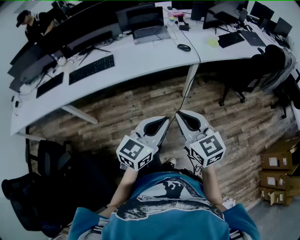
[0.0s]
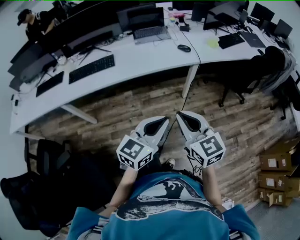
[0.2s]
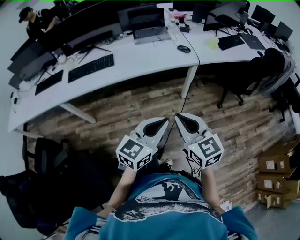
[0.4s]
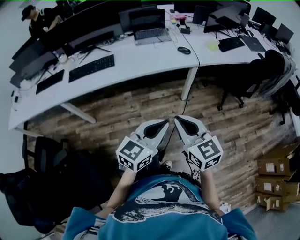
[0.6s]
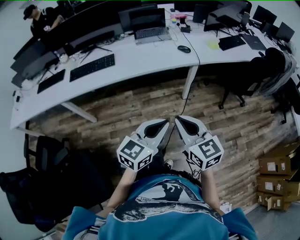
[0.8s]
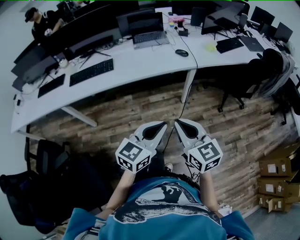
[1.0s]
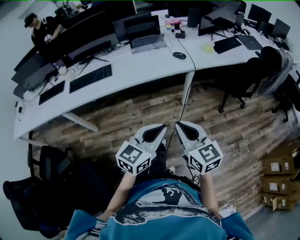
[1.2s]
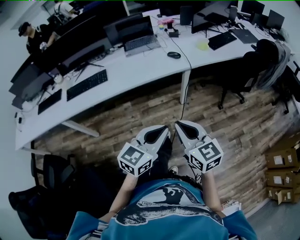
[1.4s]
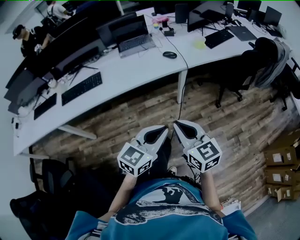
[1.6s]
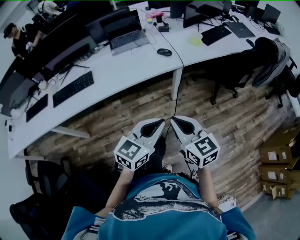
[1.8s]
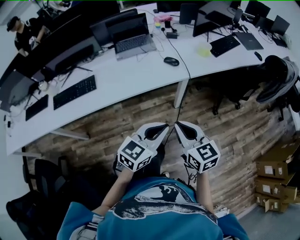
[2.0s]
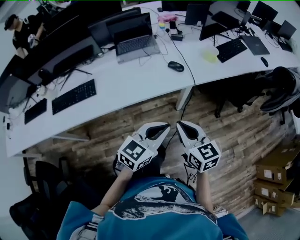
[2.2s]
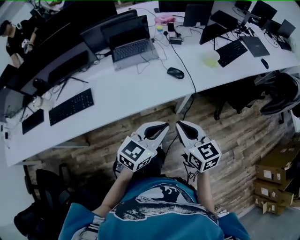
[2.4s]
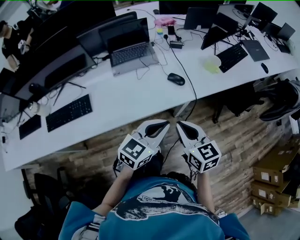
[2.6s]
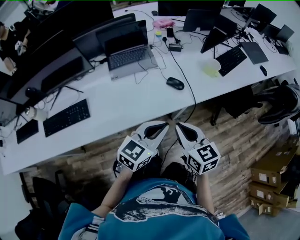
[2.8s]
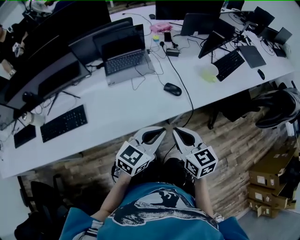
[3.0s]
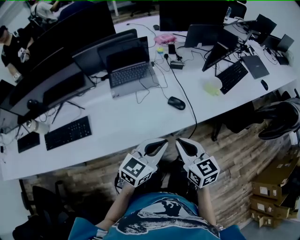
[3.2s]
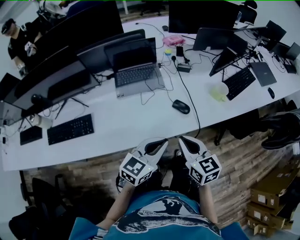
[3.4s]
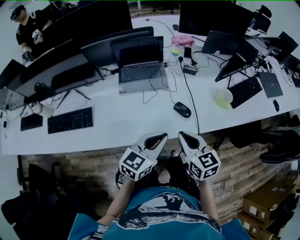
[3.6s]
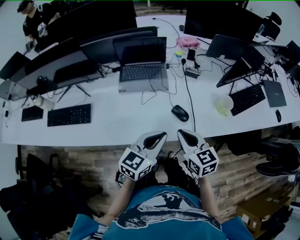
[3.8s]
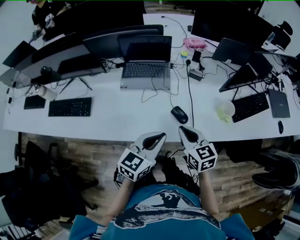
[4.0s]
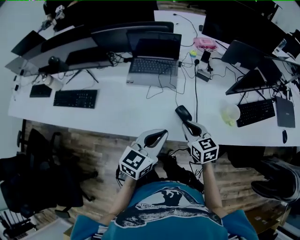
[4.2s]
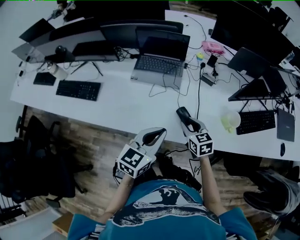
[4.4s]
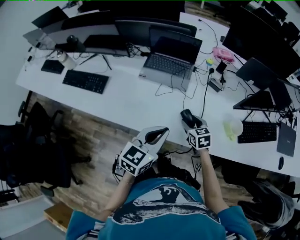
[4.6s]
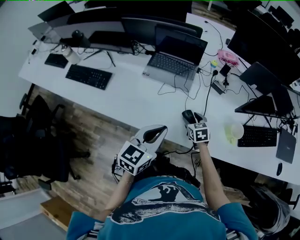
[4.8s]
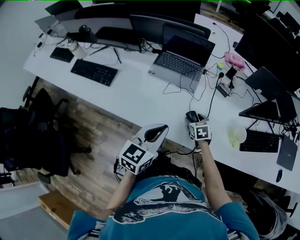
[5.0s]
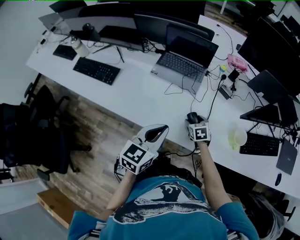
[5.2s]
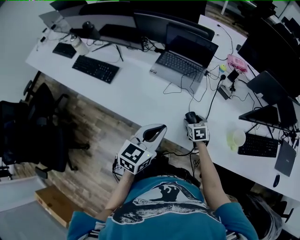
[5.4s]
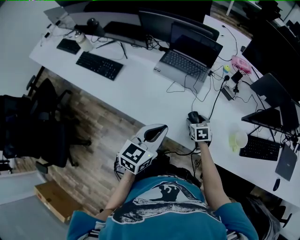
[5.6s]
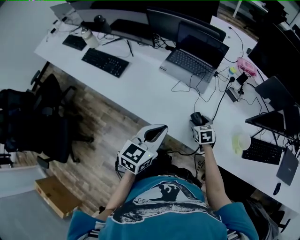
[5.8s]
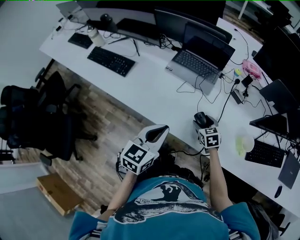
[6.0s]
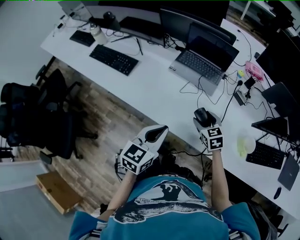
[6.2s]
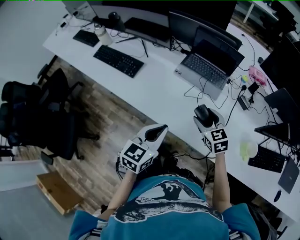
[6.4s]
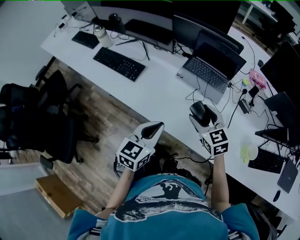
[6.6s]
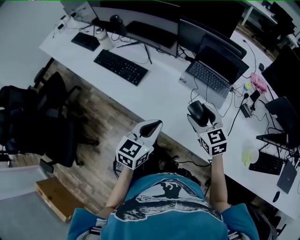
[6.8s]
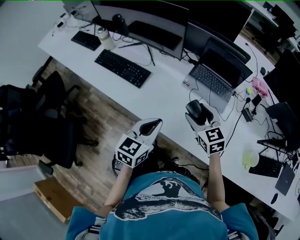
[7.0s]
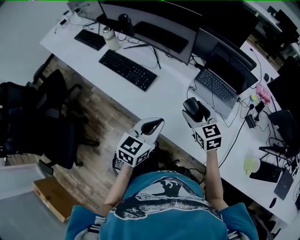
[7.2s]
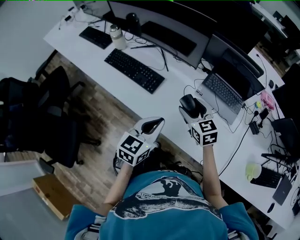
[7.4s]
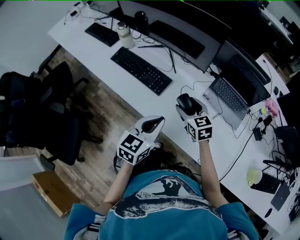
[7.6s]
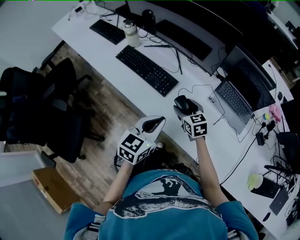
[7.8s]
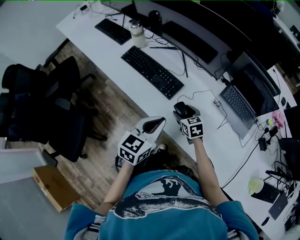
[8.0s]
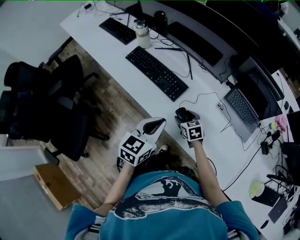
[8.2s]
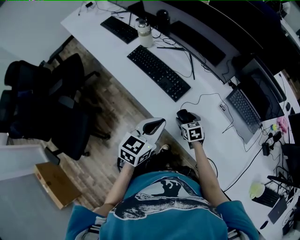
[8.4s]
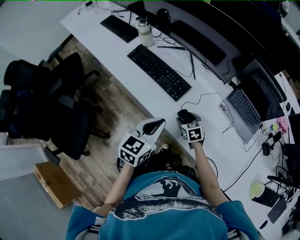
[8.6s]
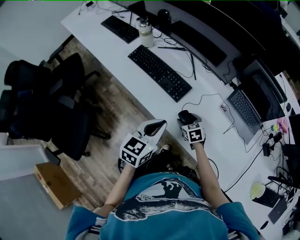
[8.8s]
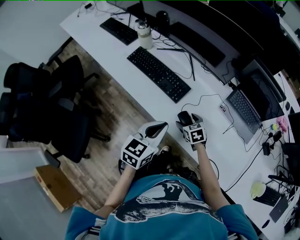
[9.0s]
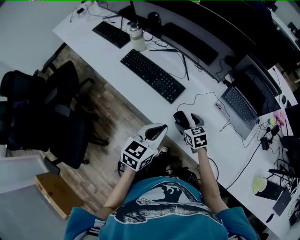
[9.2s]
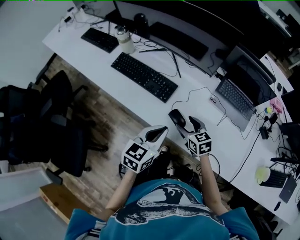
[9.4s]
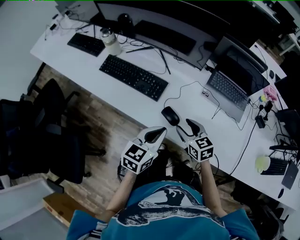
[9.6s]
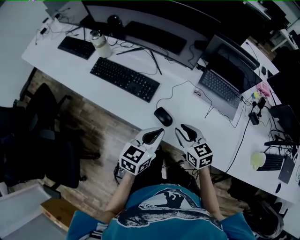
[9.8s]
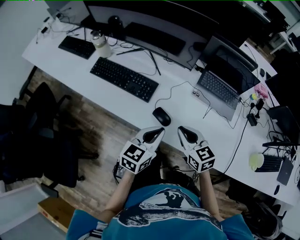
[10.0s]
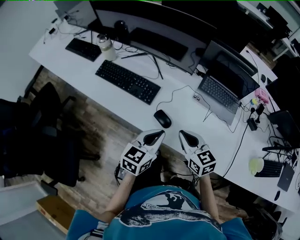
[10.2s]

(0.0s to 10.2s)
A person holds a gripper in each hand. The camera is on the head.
0.0s - 1.4s: The right gripper ends up roughly 5 cm from where it was.
1.4s - 3.0s: Both grippers travel together forward, about 35 cm.
3.0s - 4.4s: The right gripper changes place by some 25 cm, and swivels roughly 30 degrees, while the left gripper ends up roughly 10 cm from where it was, and turns by some 40 degrees.
4.4s - 5.8s: The right gripper moves downward and forward, about 10 cm, changes its angle by roughly 20 degrees, and opens.
5.8s - 7.2s: The left gripper is displaced to the left and forward by approximately 20 cm. Meanwhile the right gripper shifts some 35 cm to the left and upward, and swivels roughly 30 degrees.
7.2s - 8.8s: The left gripper shifts about 15 cm to the left and forward. Meanwhile the right gripper heads downward and to the left, covering some 25 cm, and changes its angle by about 20 degrees.
8.8s - 10.2s: The right gripper heads upward, backward and to the right, covering about 25 cm, rotates some 30 degrees, and closes up. Meanwhile the left gripper shifts approximately 10 cm to the right.

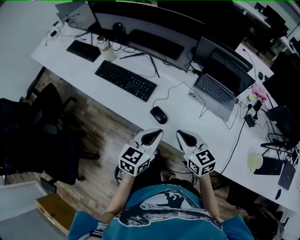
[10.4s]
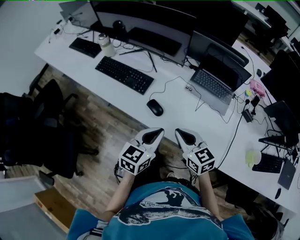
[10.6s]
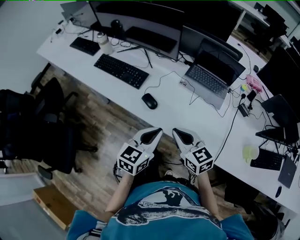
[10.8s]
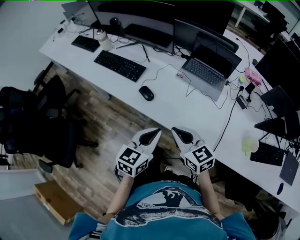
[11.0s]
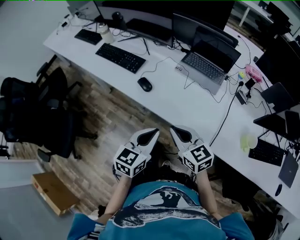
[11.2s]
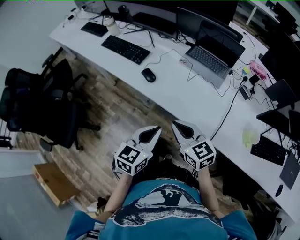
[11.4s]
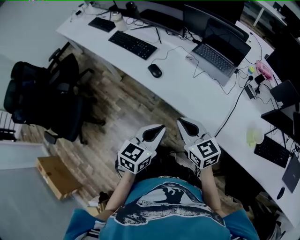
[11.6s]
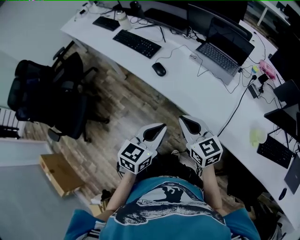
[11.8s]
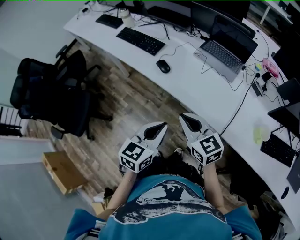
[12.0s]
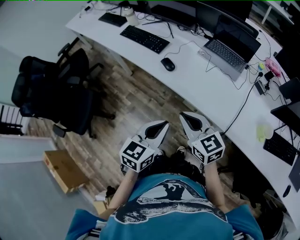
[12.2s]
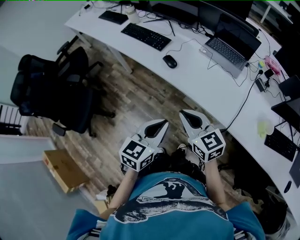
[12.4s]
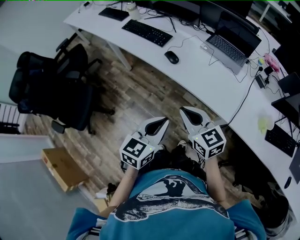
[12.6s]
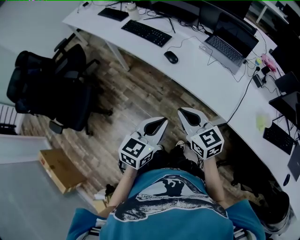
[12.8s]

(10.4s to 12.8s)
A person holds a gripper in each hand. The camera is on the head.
10.4s - 11.6s: The two grippers go roughly 25 cm backward and to the right.
11.6s - 12.8s: The two grippers go some 10 cm to the left and backward.

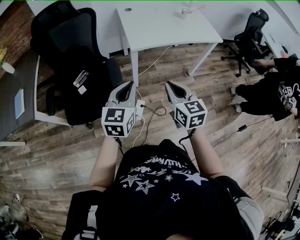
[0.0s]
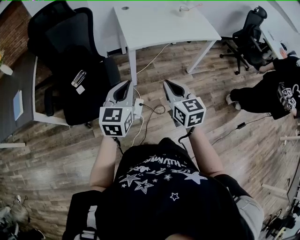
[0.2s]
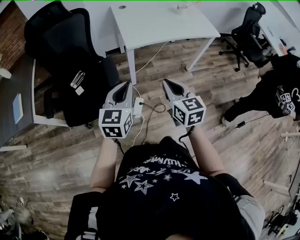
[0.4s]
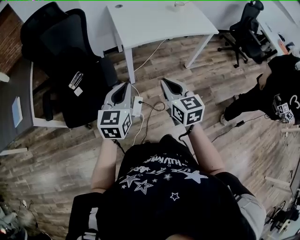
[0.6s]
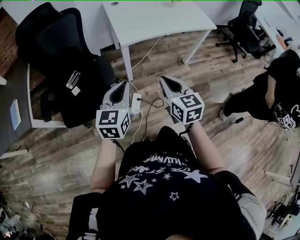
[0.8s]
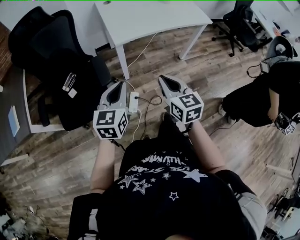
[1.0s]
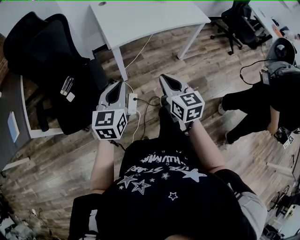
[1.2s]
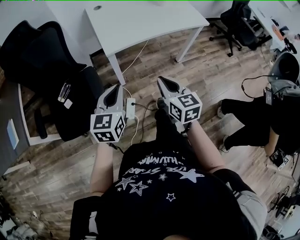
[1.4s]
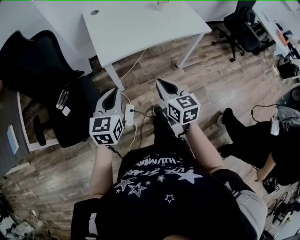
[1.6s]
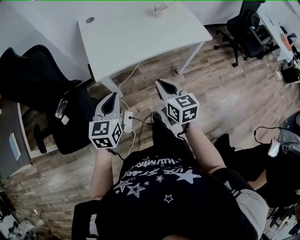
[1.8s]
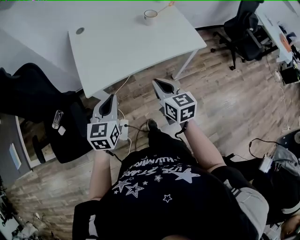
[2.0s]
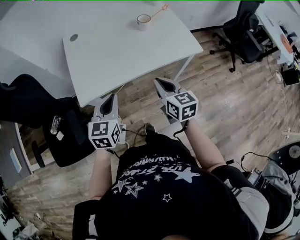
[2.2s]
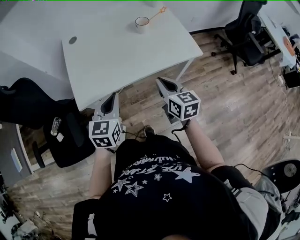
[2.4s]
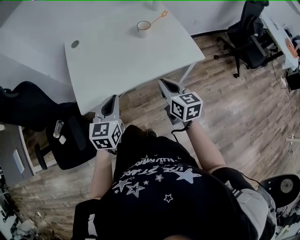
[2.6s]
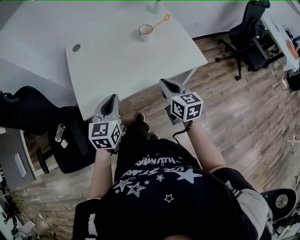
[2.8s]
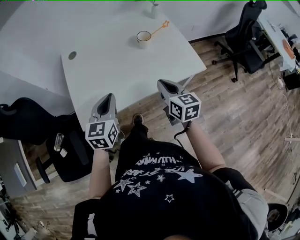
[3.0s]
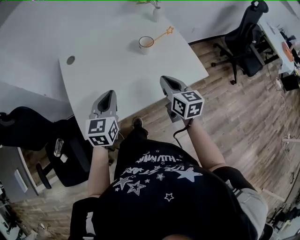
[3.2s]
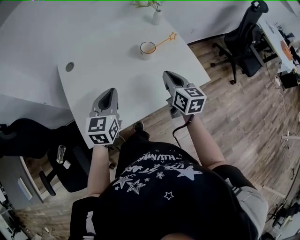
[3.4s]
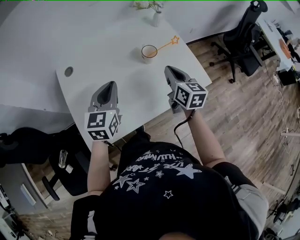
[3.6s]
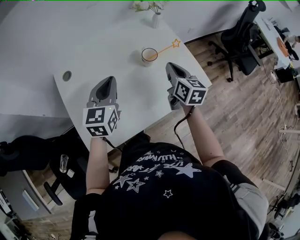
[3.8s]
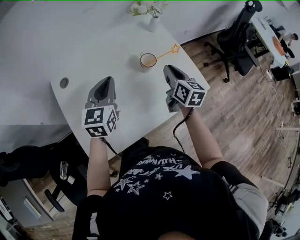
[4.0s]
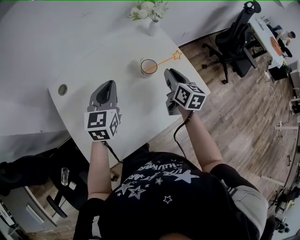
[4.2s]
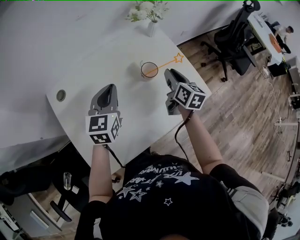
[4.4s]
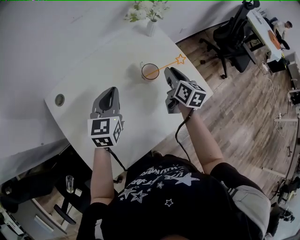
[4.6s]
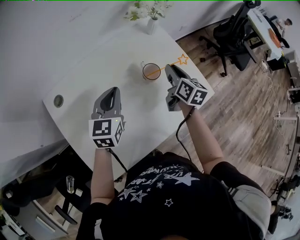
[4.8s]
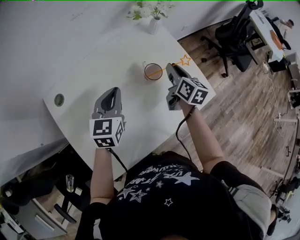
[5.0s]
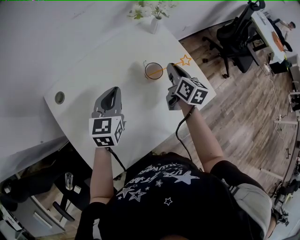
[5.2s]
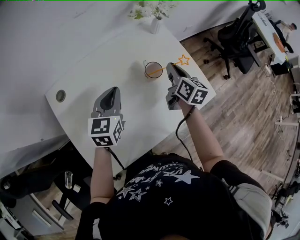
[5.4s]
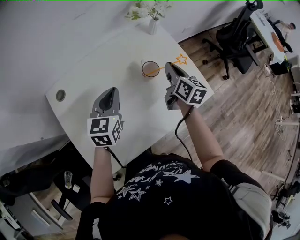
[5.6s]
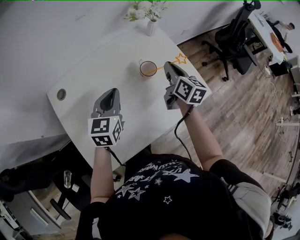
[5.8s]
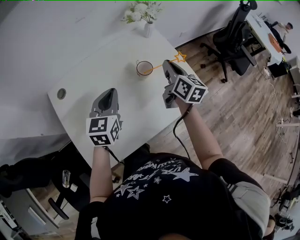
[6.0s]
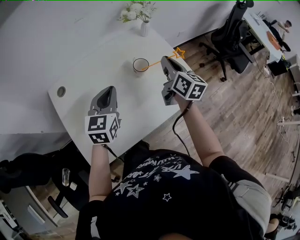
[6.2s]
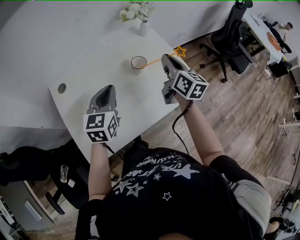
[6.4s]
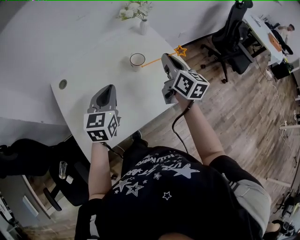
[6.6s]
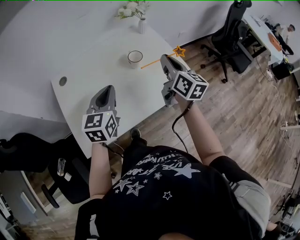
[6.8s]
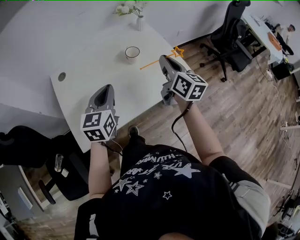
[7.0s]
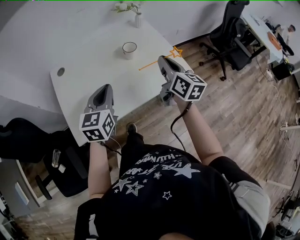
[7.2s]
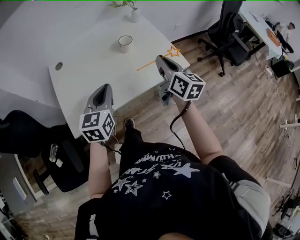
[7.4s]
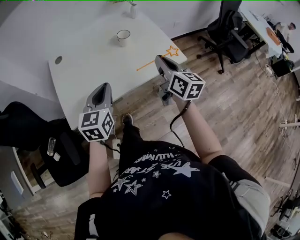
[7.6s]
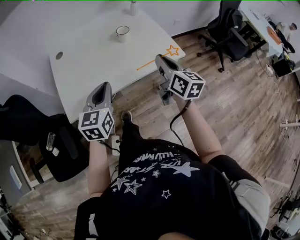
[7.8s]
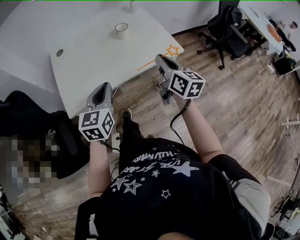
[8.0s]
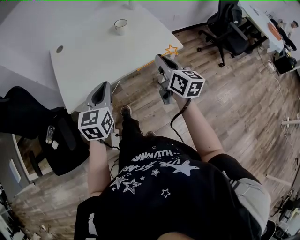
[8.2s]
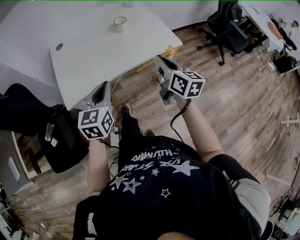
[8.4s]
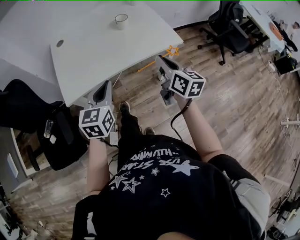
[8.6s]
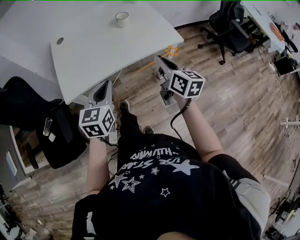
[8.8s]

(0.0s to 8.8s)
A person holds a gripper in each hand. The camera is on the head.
0.0s - 1.4s: The left gripper is displaced forward by some 5 cm; the right gripper shifts some 10 cm forward and to the right.
1.4s - 3.0s: The two grippers go approximately 40 cm forward and to the right.
3.0s - 4.4s: The two grippers go approximately 25 cm forward. The right gripper rotates about 30 degrees, and opens its fingers.
4.4s - 5.8s: There are only small adjustments of the grippers.
5.8s - 7.4s: The two grippers go approximately 20 cm backward.
7.4s - 8.8s: Both grippers travel together backward, roughly 15 cm.

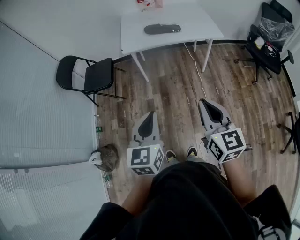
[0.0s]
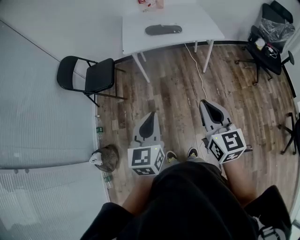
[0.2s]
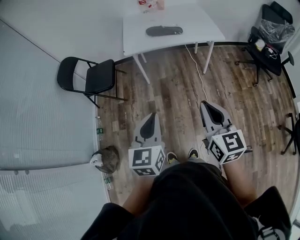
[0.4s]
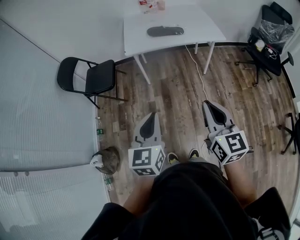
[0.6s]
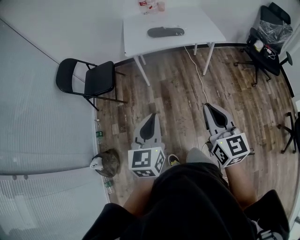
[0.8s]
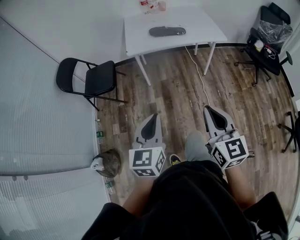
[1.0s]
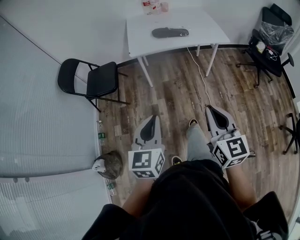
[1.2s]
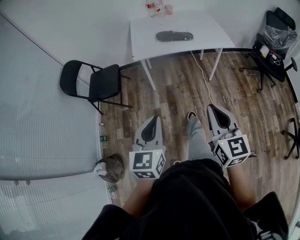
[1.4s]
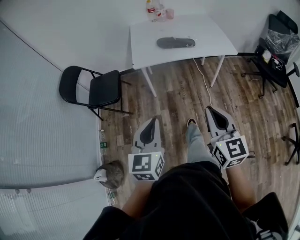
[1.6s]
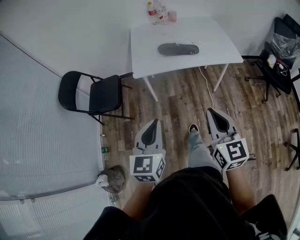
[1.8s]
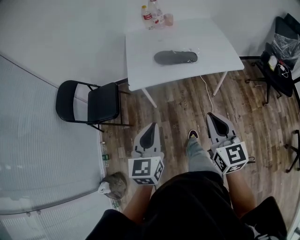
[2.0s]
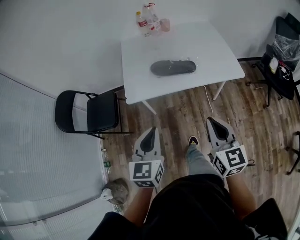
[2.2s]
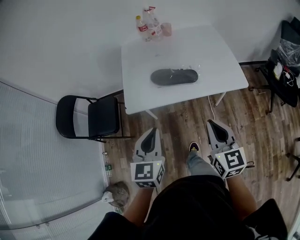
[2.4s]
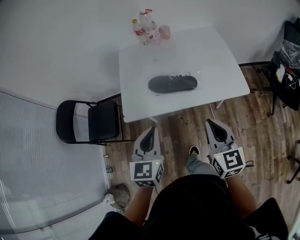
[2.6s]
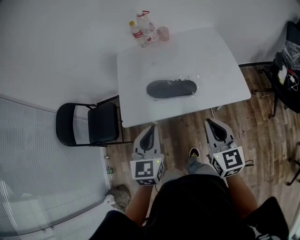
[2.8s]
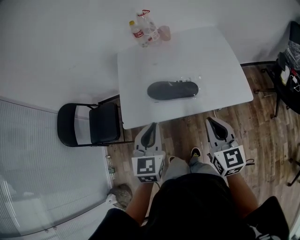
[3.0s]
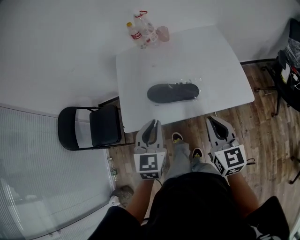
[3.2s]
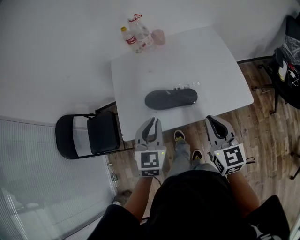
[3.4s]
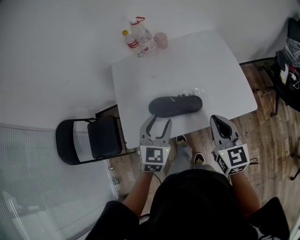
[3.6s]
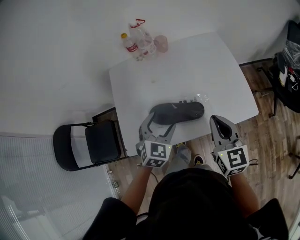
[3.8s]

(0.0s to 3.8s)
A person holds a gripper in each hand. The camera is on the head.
0.0s - 1.2s: The grippers both shift to the left by roughly 5 cm.
1.2s - 2.6s: The pair of grippers is taken forward, about 50 cm.
2.6s - 3.8s: The right gripper shifts approximately 20 cm forward; the left gripper moves forward and downward, some 25 cm, swivels some 30 degrees, and opens.
